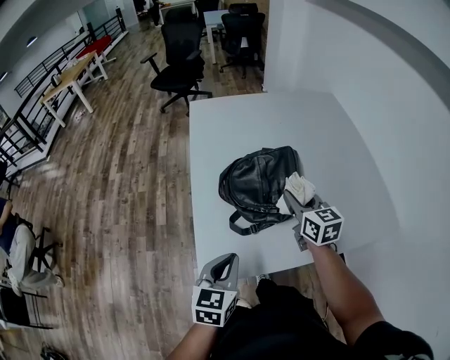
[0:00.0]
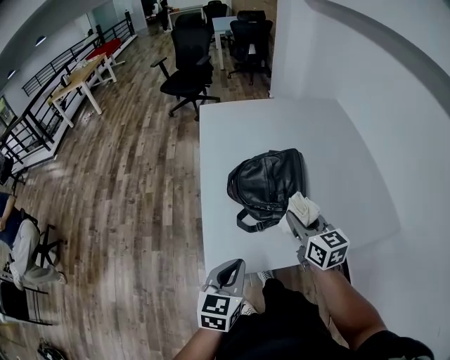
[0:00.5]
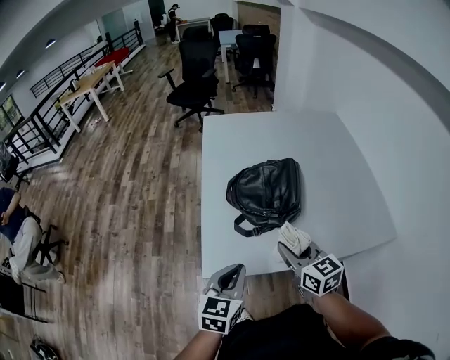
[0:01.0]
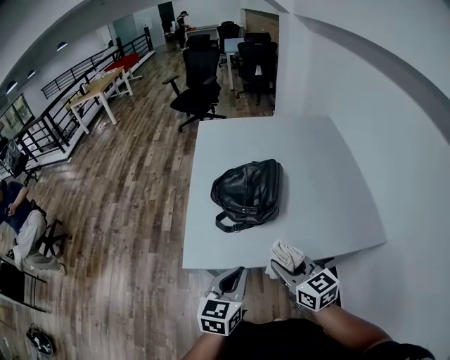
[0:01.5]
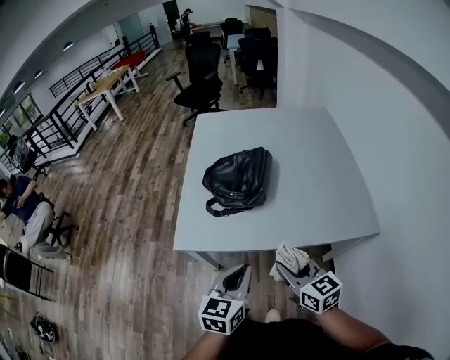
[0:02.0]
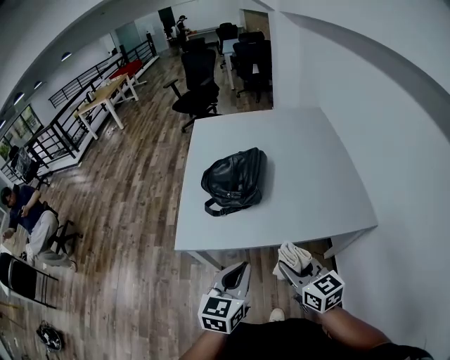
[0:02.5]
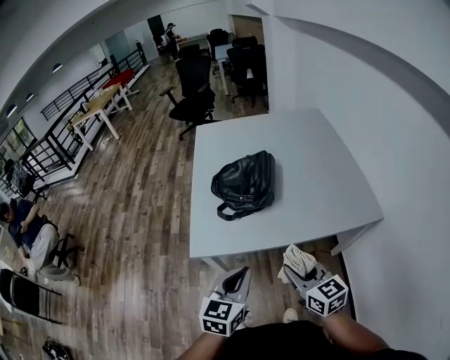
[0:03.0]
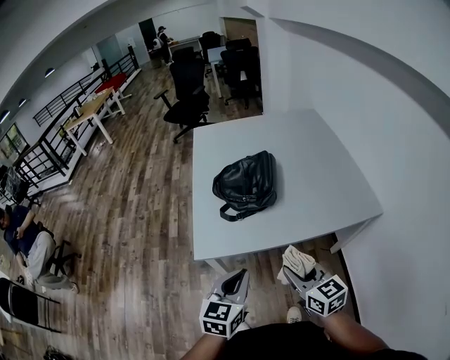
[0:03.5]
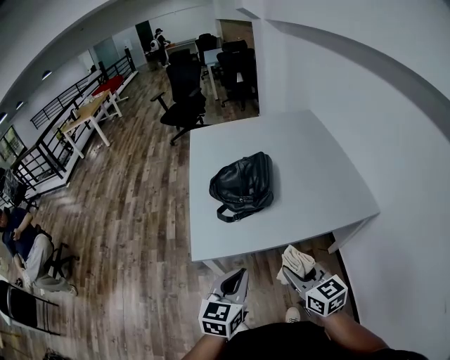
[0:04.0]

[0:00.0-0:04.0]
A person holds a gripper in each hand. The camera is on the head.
0:00.0 to 0:02.0: The left gripper is displaced to the right and backward by some 25 cm. Meanwhile the right gripper moves backward, about 30 cm, and changes its angle by some 20 degrees.
0:02.0 to 0:04.0: Both grippers move to the left, about 10 cm.

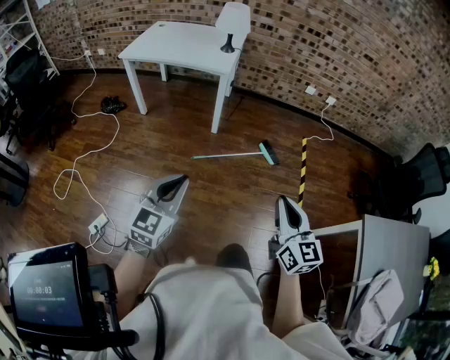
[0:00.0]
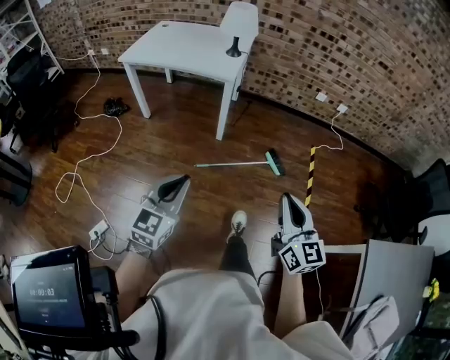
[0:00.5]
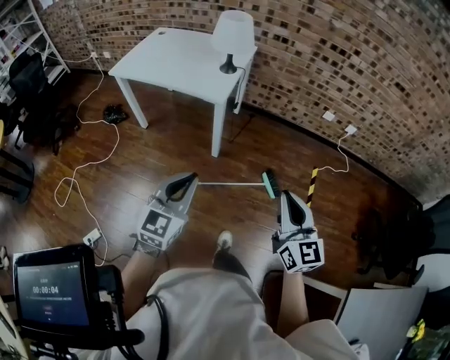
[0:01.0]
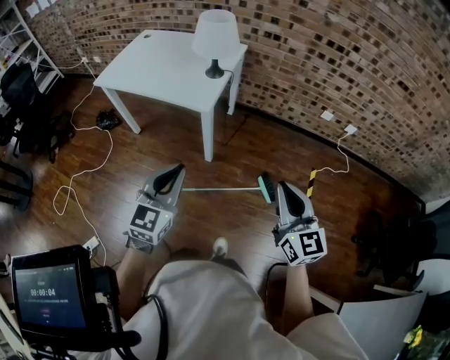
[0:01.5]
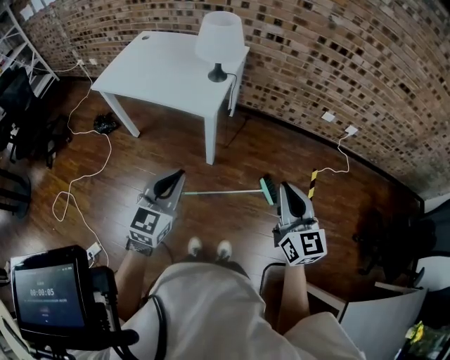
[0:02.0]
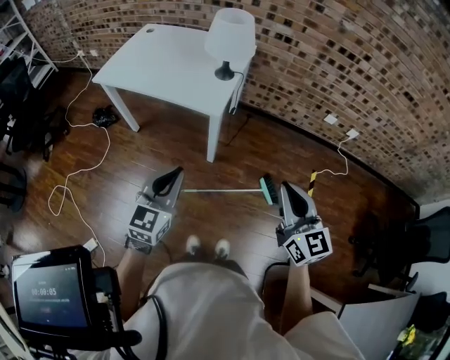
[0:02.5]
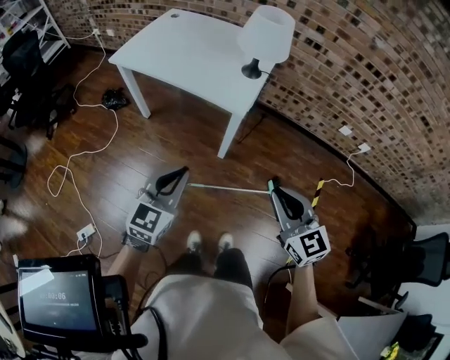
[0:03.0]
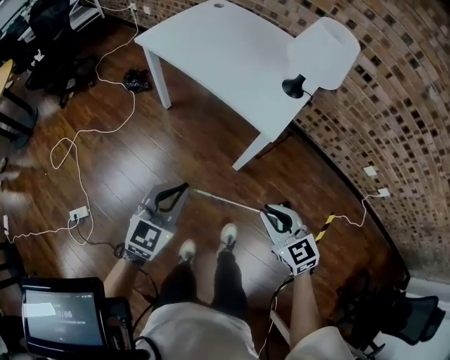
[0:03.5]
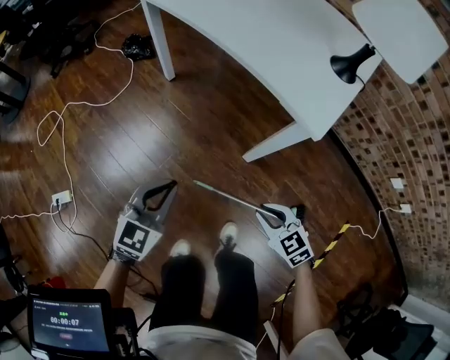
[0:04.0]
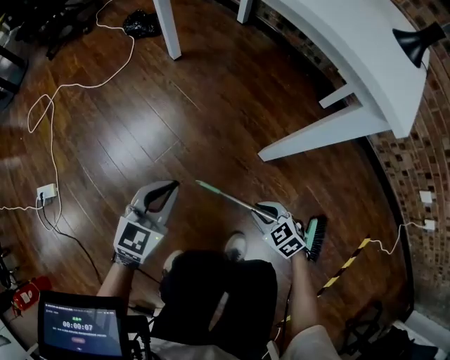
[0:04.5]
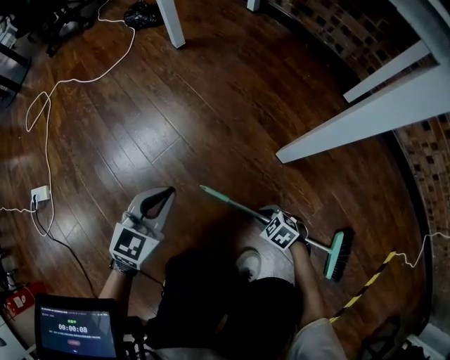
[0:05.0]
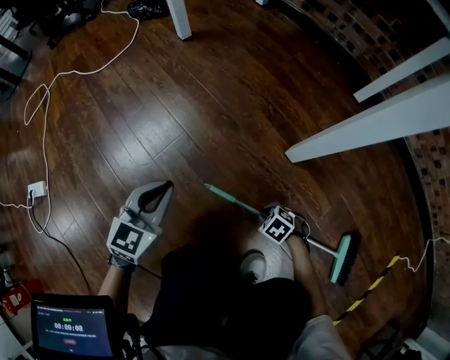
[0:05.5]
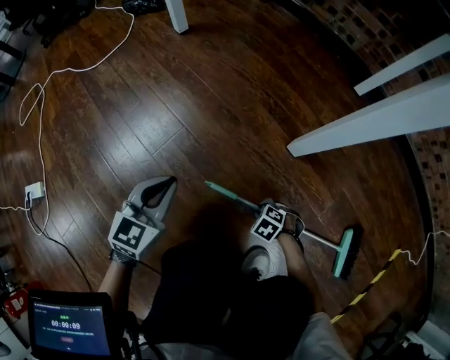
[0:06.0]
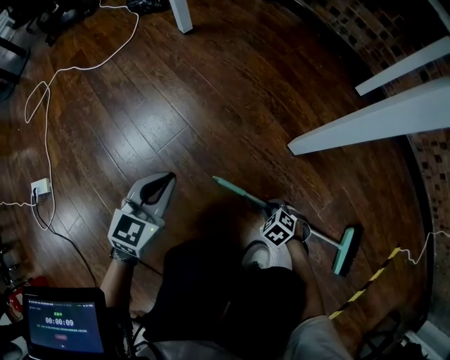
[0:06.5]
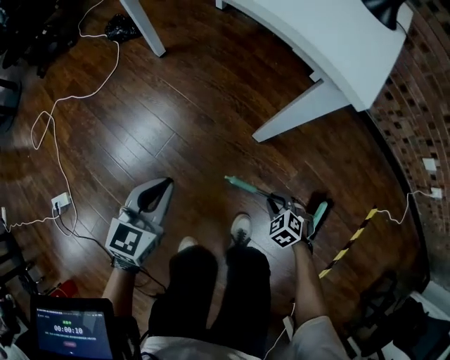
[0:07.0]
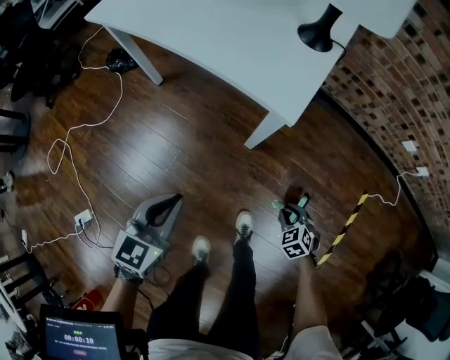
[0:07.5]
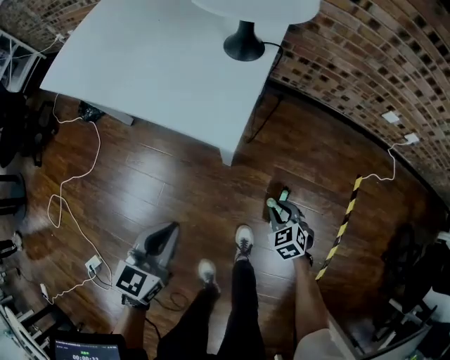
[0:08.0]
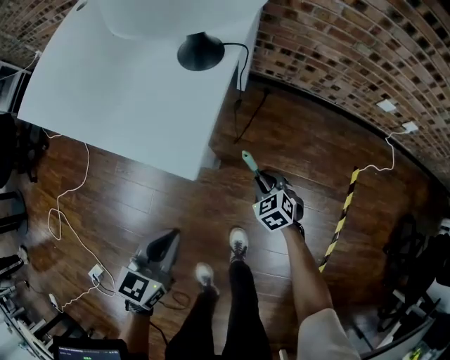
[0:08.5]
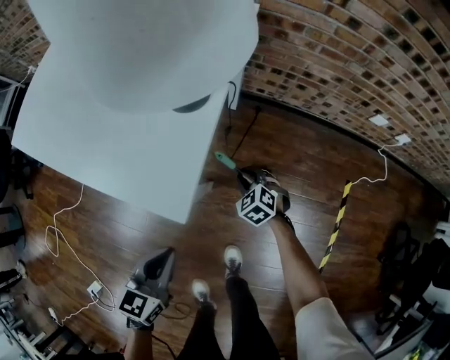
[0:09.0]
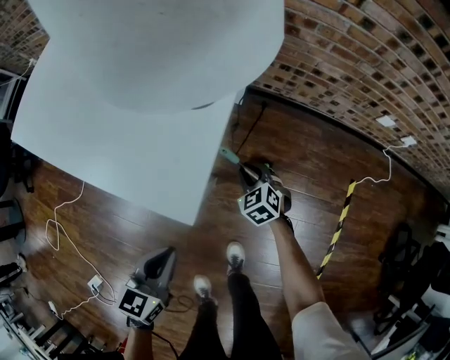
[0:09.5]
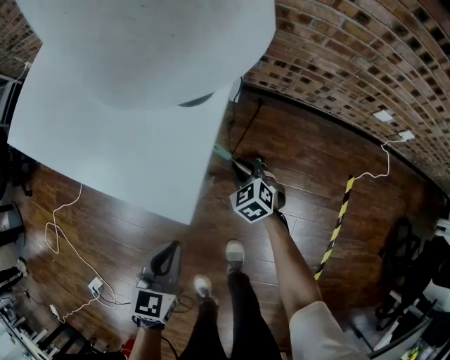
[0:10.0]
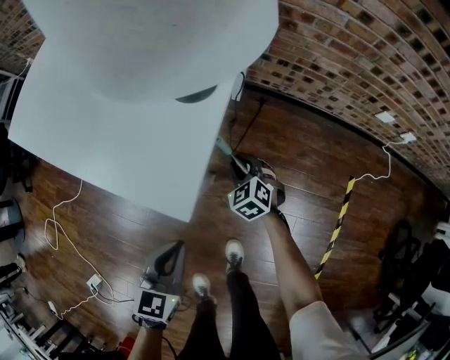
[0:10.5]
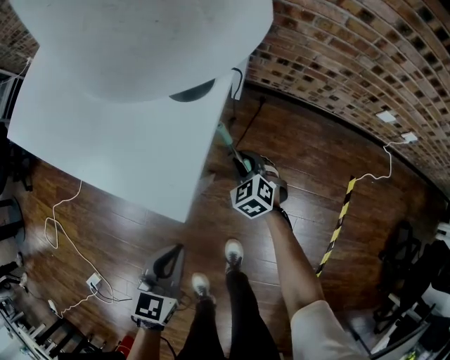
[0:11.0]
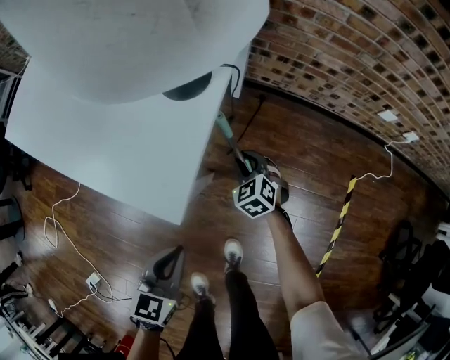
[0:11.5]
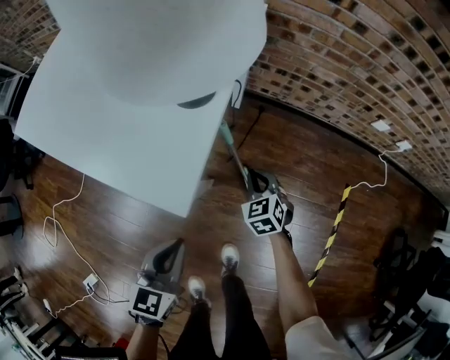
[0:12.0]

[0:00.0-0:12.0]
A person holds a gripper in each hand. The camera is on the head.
0:00.0 to 0:02.0: The two grippers travel together, forward, about 40 cm.
0:02.0 to 0:04.0: The two grippers go some 40 cm downward. The right gripper angles its fingers downward, by some 40 degrees. Meanwhile the left gripper turns by approximately 20 degrees.
0:04.0 to 0:06.0: The grippers both shift downward by some 50 cm. The right gripper tilts its fingers approximately 40 degrees downward.
0:06.0 to 0:08.0: Both grippers move upward, about 50 cm. The left gripper turns by approximately 20 degrees, while the right gripper rotates about 60 degrees.
0:08.0 to 0:10.0: The left gripper goes about 10 cm forward and to the right. Meanwhile the right gripper shifts approximately 25 cm forward.
0:10.0 to 0:12.0: The right gripper is displaced to the right by roughly 5 cm.

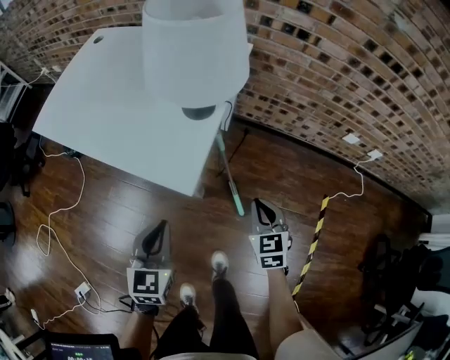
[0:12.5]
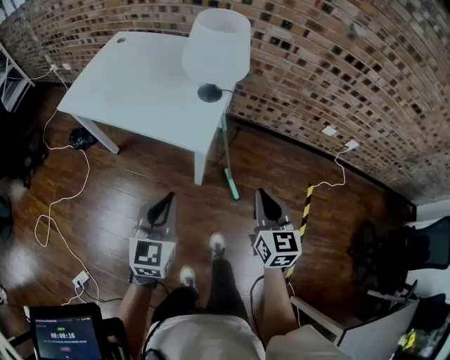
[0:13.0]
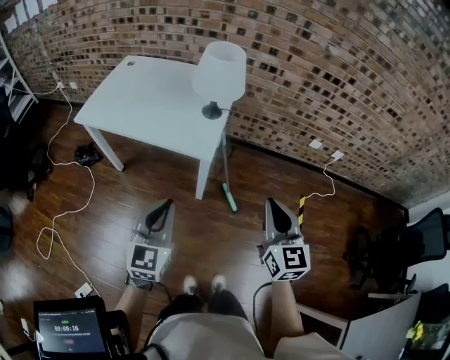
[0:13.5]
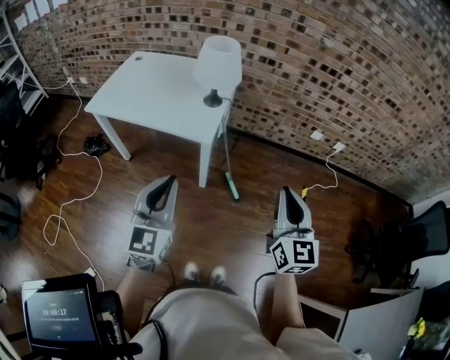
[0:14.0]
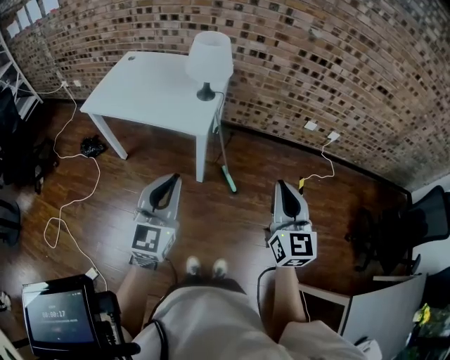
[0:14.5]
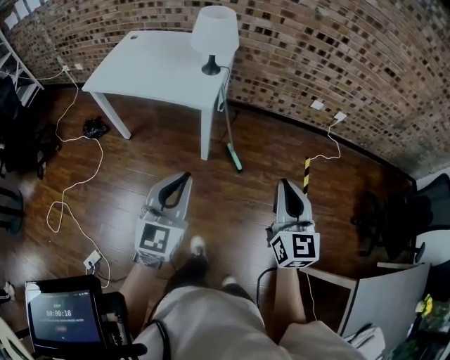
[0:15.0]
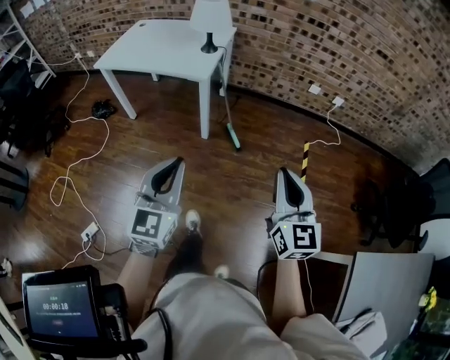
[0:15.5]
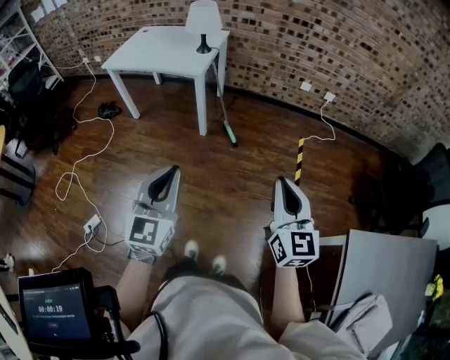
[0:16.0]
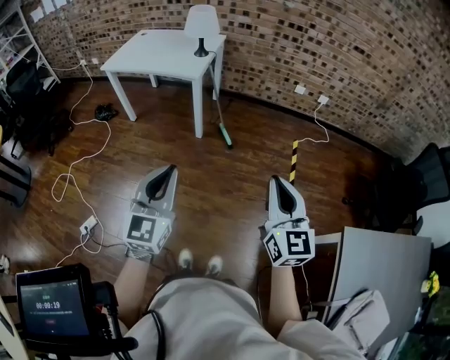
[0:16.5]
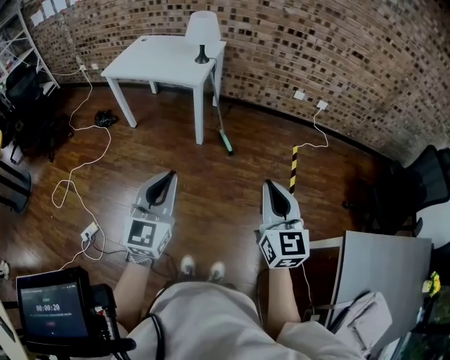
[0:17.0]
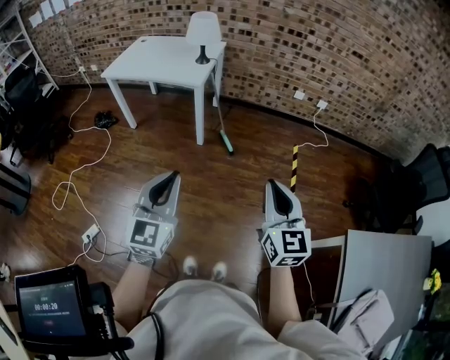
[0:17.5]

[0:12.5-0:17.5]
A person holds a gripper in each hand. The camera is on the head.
0:12.5 to 0:15.0: The grippers both shift backward and upward by roughly 50 cm. The left gripper rotates roughly 30 degrees. Meanwhile the right gripper changes its angle by some 30 degrees.
0:15.0 to 0:17.5: Both grippers travel together backward, approximately 30 cm.

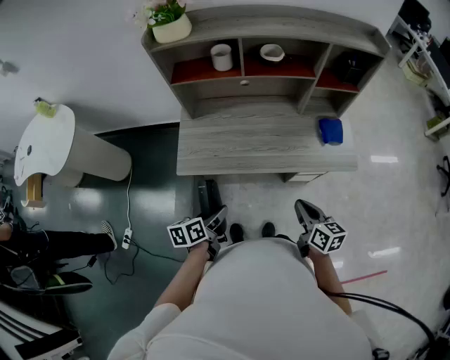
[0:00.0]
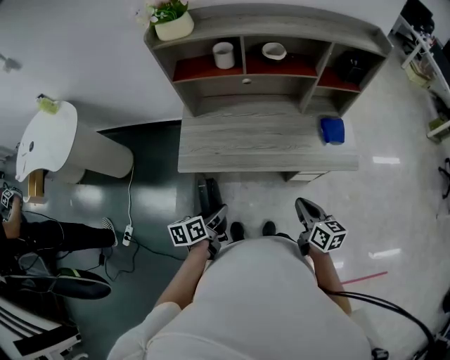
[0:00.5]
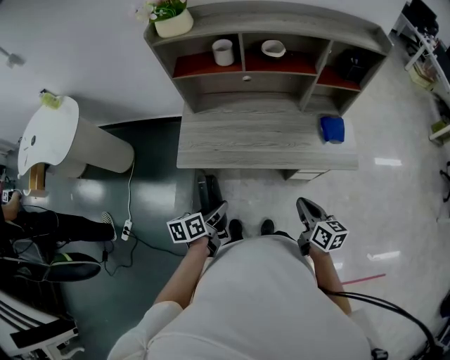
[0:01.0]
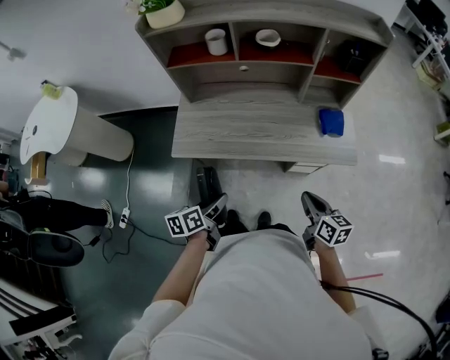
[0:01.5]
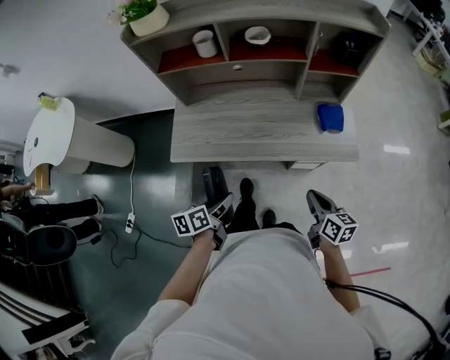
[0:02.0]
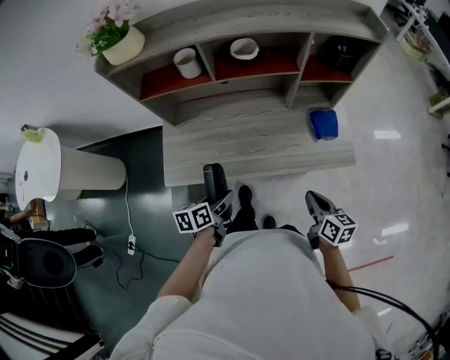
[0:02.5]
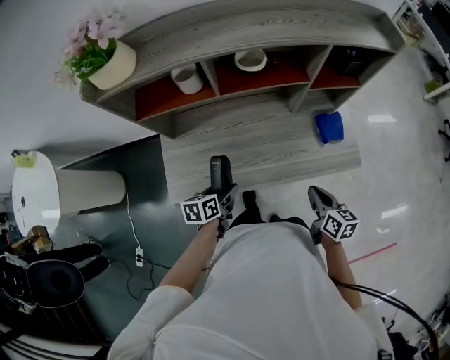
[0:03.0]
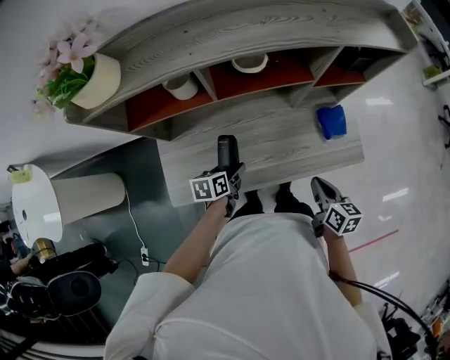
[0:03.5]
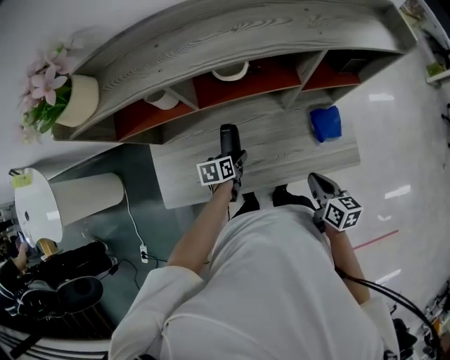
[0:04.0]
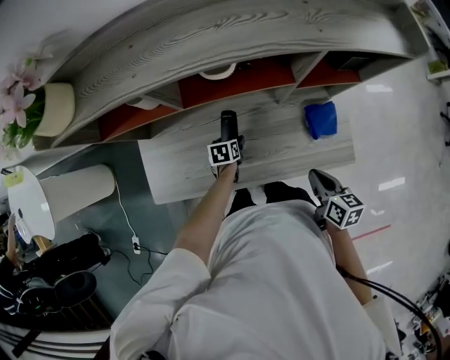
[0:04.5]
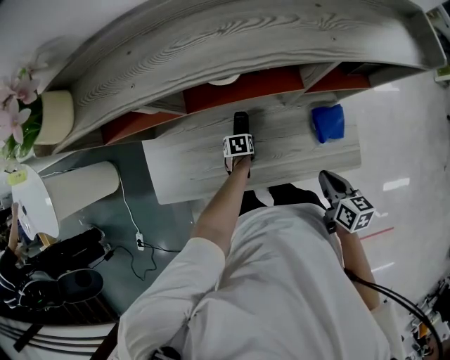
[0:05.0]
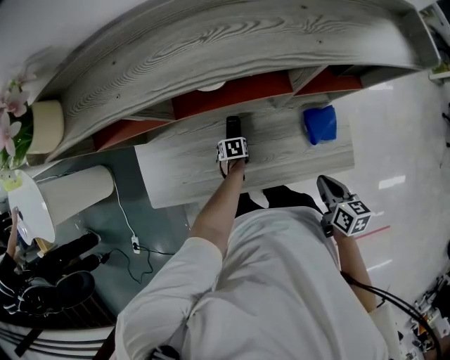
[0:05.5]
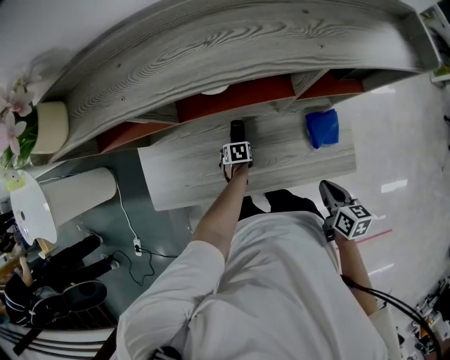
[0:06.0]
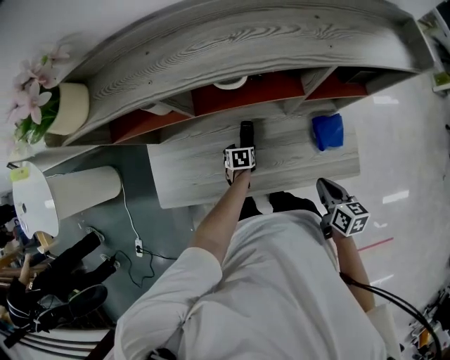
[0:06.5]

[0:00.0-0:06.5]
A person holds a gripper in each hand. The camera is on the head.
0:00.0 to 0:02.0: The grippers both shift to the right by about 10 cm.
0:02.0 to 0:04.5: The right gripper shifts approximately 25 cm forward. The left gripper is displaced forward and downward by roughly 50 cm, and rotates some 30 degrees.
